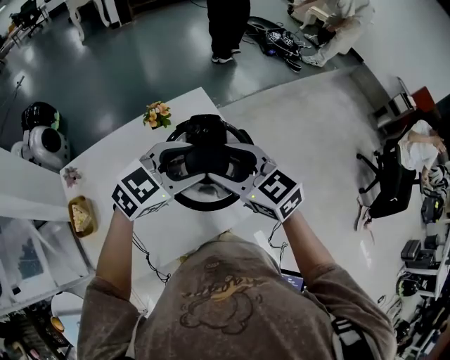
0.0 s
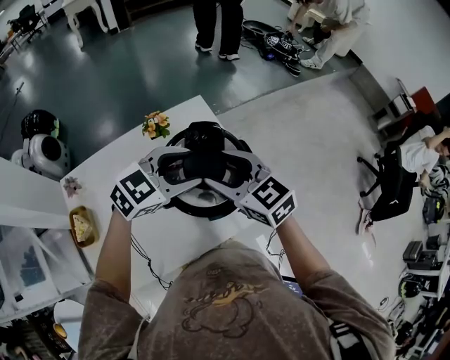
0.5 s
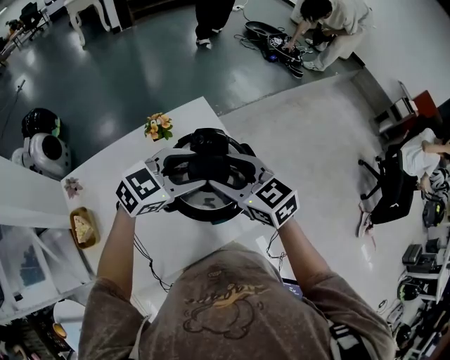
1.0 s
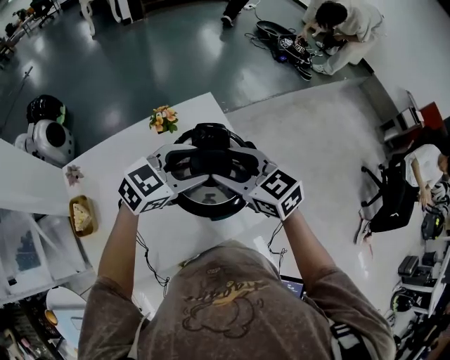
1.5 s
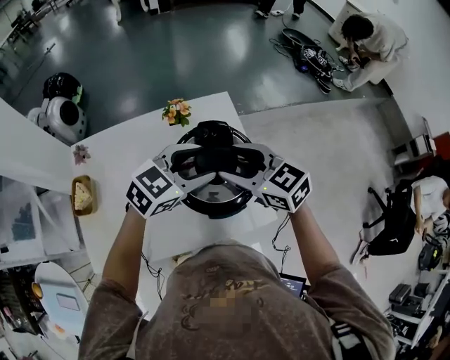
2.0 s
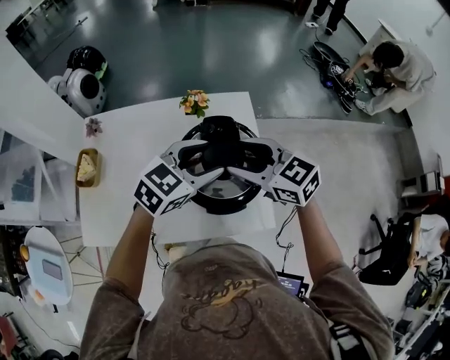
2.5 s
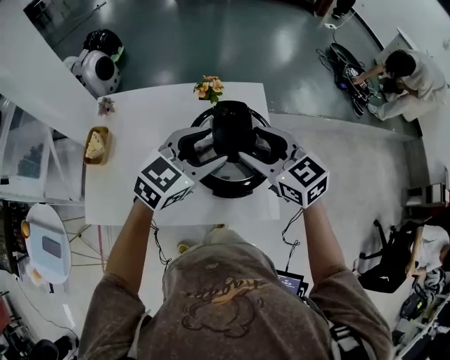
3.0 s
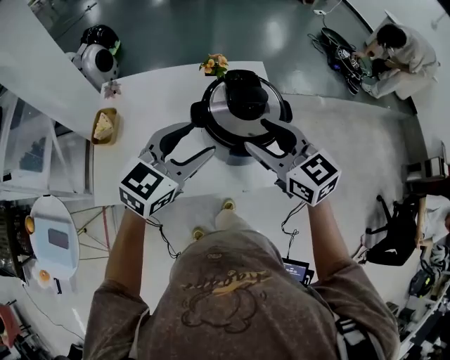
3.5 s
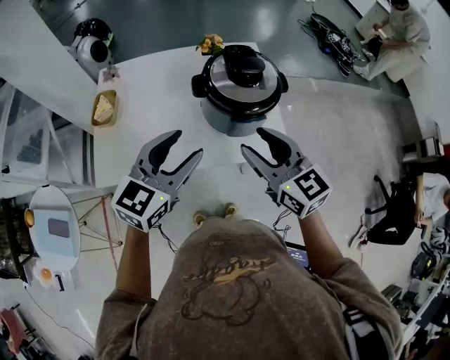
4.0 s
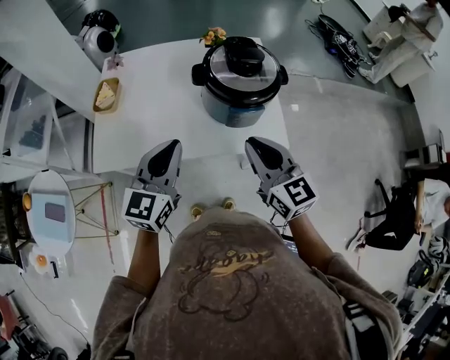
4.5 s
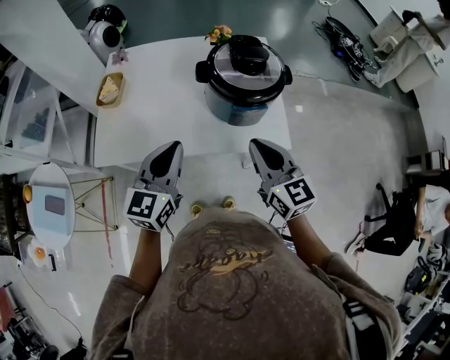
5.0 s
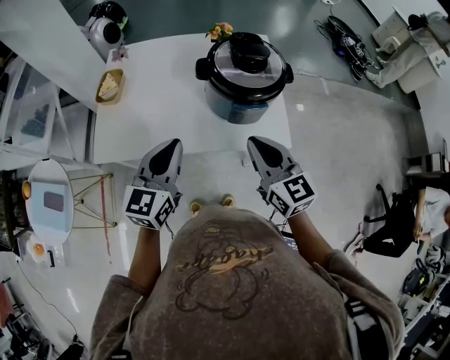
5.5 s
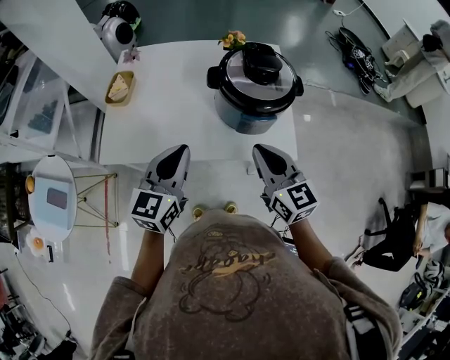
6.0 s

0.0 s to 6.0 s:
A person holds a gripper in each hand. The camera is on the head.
0.0 to 2.0 s: There are only small adjustments of the grippers.
2.0 to 4.0 s: The right gripper goes some 20 cm backward. Meanwhile the left gripper shifts some 25 cm backward and to the left, and turns by roughly 30 degrees.
4.0 to 6.0 s: The grippers both shift downward by about 5 cm. The right gripper closes up; the left gripper rotates some 20 degrees, and closes its fingers.

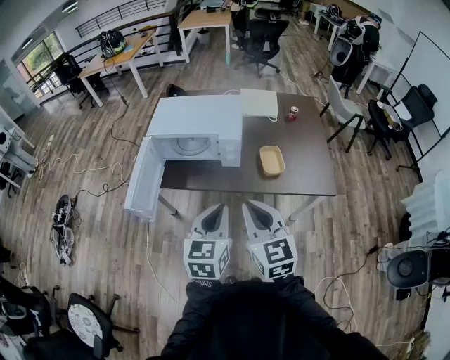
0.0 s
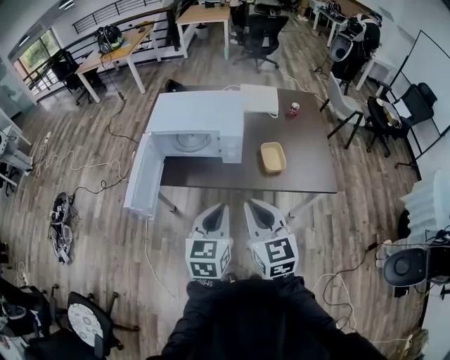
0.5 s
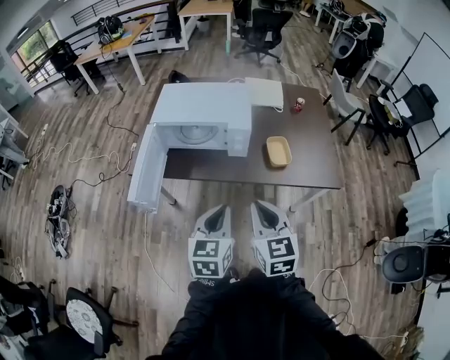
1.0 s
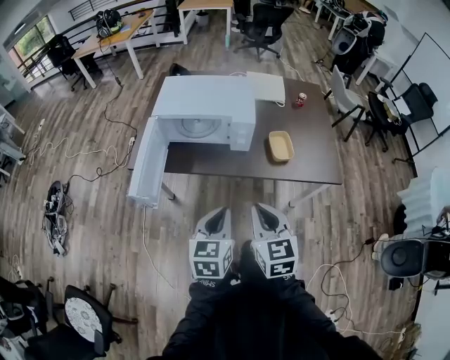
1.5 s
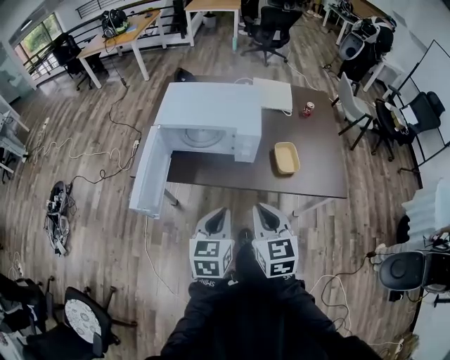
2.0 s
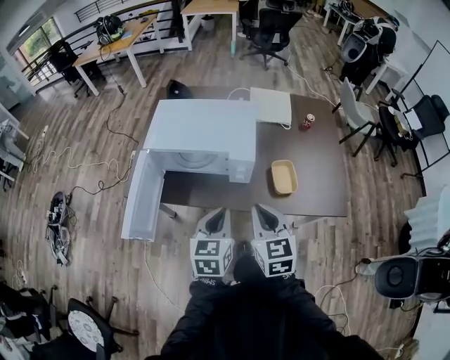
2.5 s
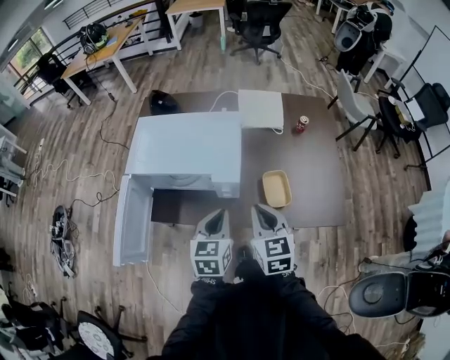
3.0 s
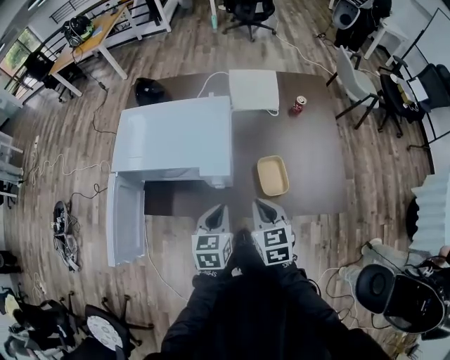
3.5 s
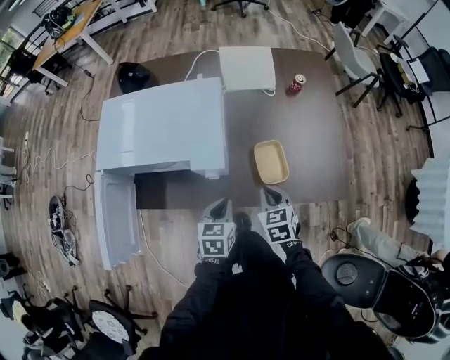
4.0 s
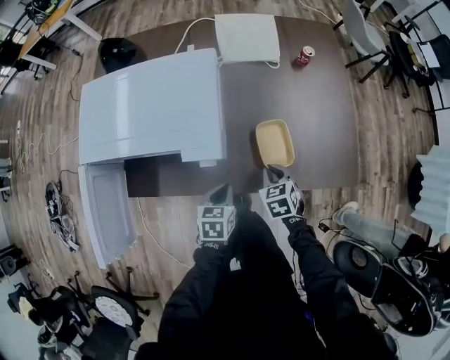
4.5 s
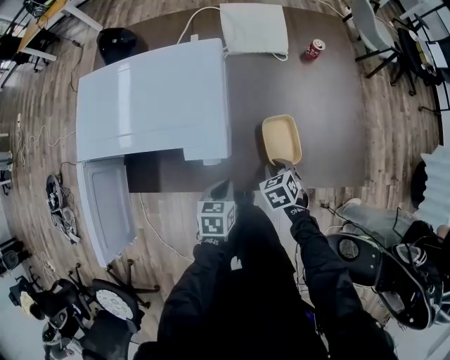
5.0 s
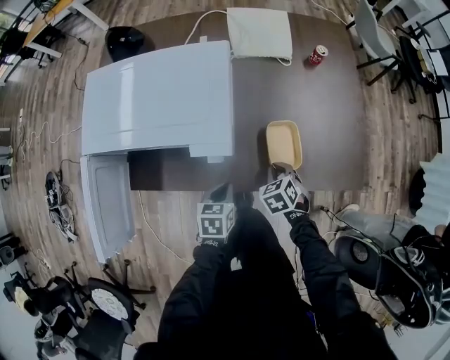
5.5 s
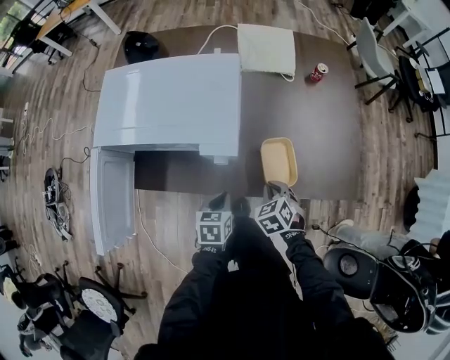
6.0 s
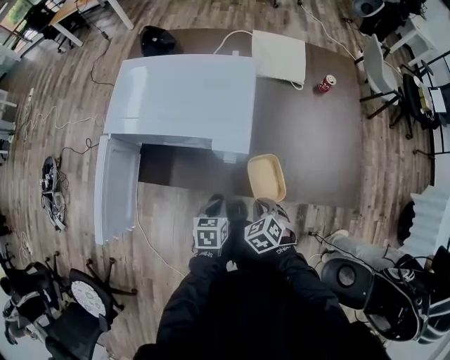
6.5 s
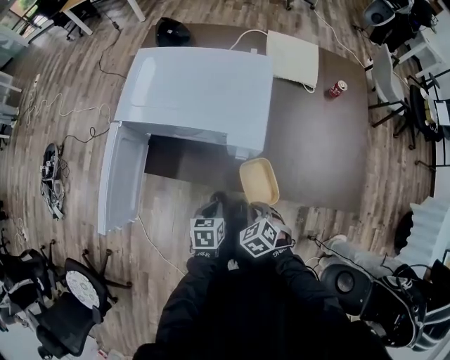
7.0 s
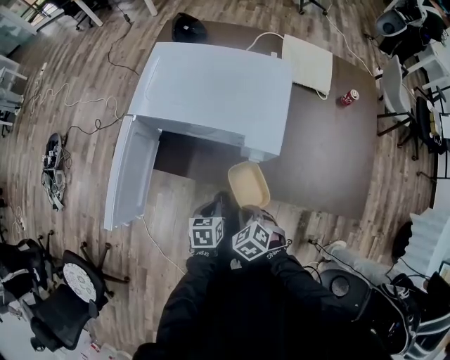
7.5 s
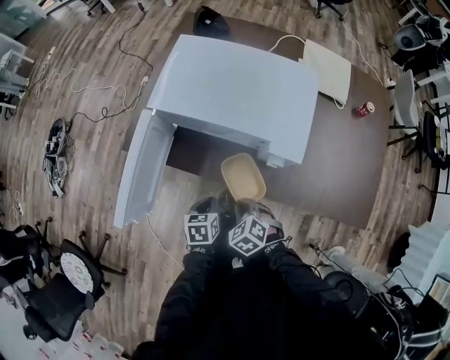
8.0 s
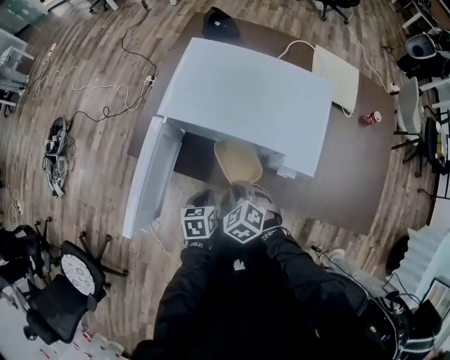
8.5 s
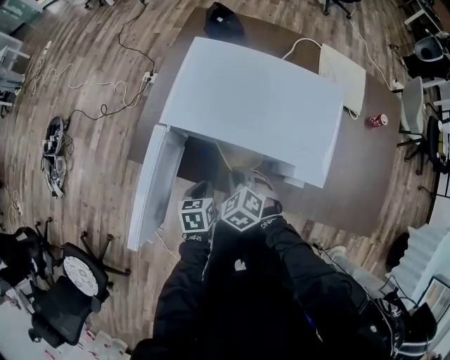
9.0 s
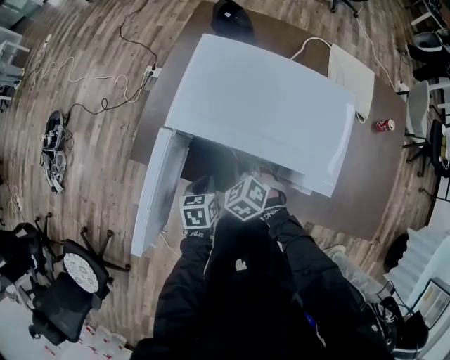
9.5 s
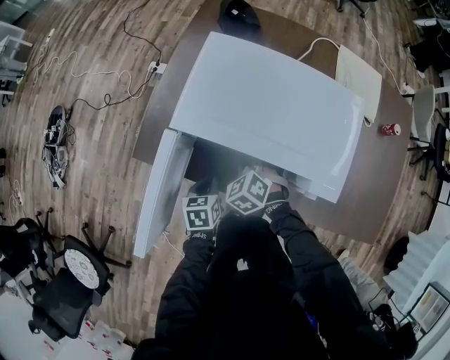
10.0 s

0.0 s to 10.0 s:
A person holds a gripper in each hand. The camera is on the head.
0.0 to 2.0 s: The right gripper heads downward and forward, covering roughly 10 cm; the left gripper heads downward and to the left, covering about 10 cm.
2.0 to 4.0 s: Both grippers move forward, downward and to the right, about 30 cm. The right gripper turns by approximately 20 degrees.
4.0 to 6.0 s: The two grippers go about 5 cm downward. The right gripper rotates about 20 degrees.
6.0 to 8.0 s: The left gripper ends up approximately 20 cm from where it was. Meanwhile the right gripper moves about 25 cm, and swivels roughly 30 degrees.
8.0 to 10.0 s: The left gripper heads forward and to the left, covering about 15 cm. The right gripper shifts about 25 cm forward.

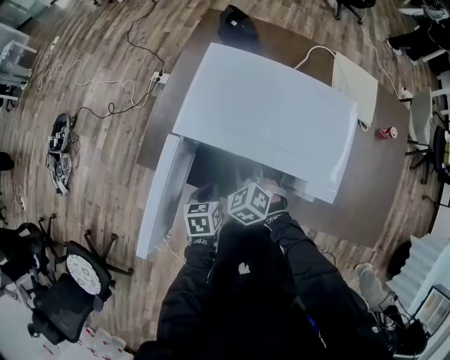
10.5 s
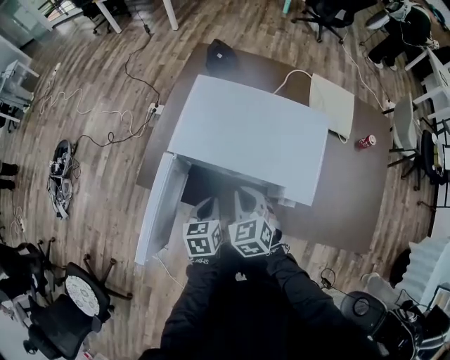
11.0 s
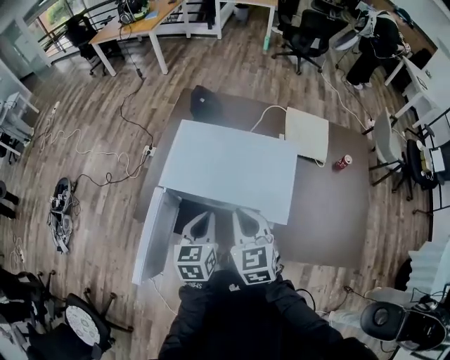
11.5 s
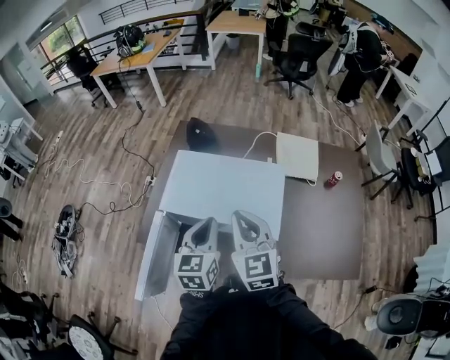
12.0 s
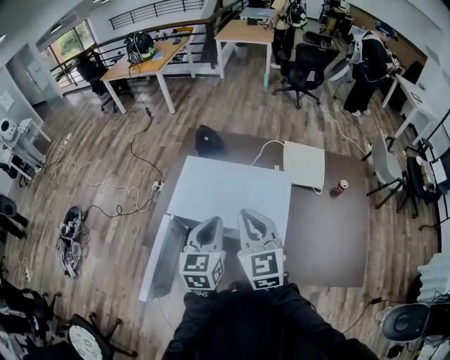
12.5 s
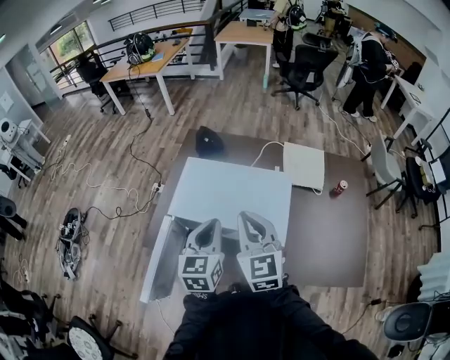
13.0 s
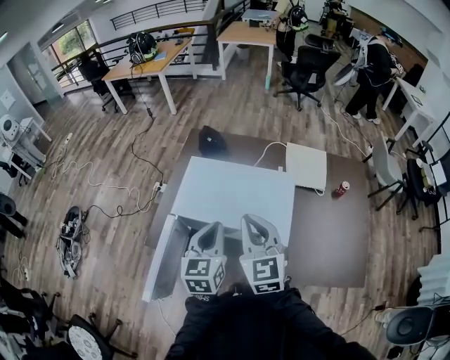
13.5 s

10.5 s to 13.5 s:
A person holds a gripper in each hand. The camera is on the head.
10.5 to 12.0 s: Both grippers move upward, about 30 cm. The right gripper points its fingers roughly 40 degrees further upward. The left gripper tilts its fingers roughly 30 degrees upward.
12.0 to 13.5 s: The grippers make only small movements.

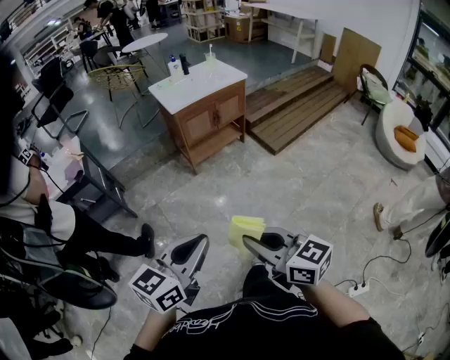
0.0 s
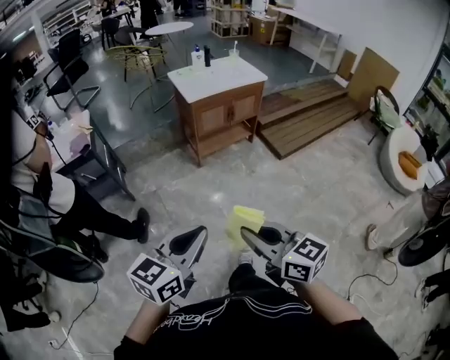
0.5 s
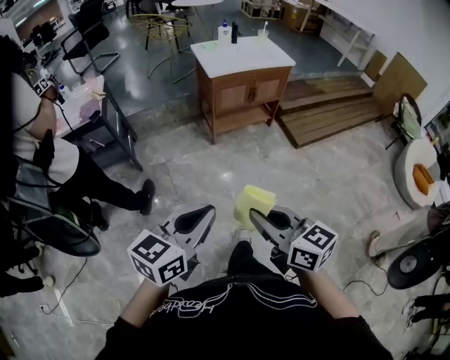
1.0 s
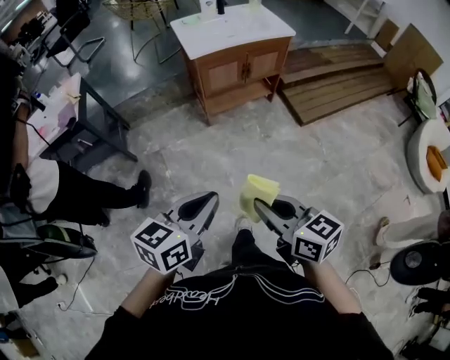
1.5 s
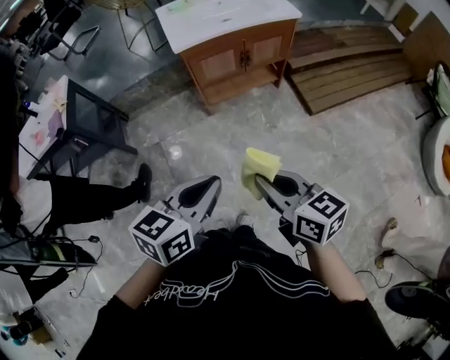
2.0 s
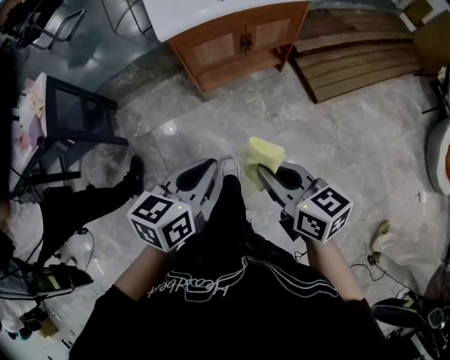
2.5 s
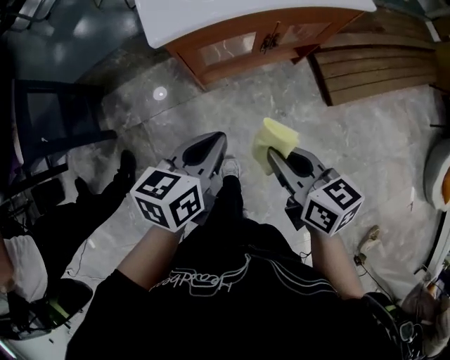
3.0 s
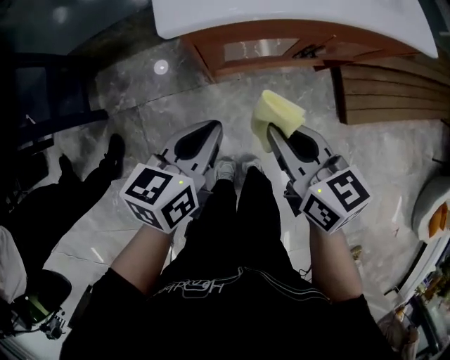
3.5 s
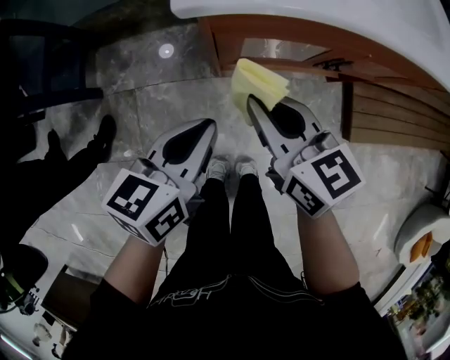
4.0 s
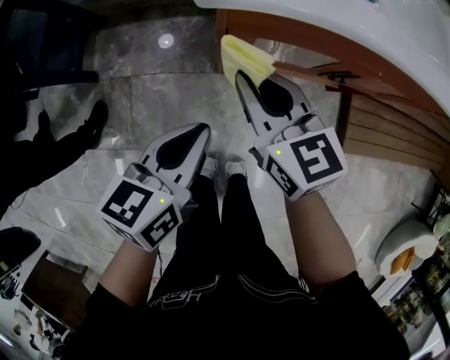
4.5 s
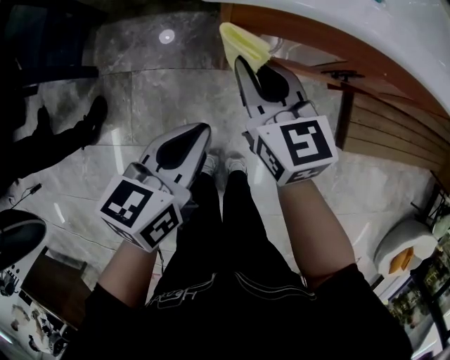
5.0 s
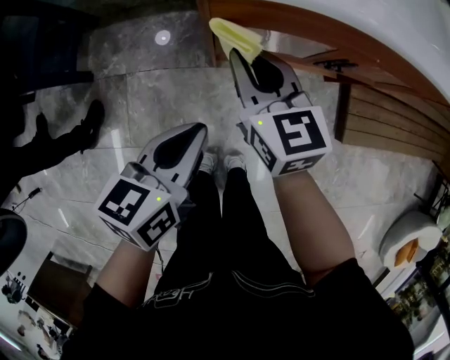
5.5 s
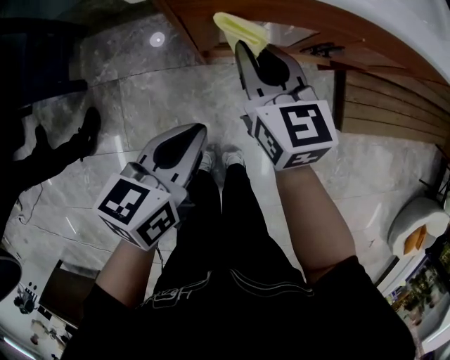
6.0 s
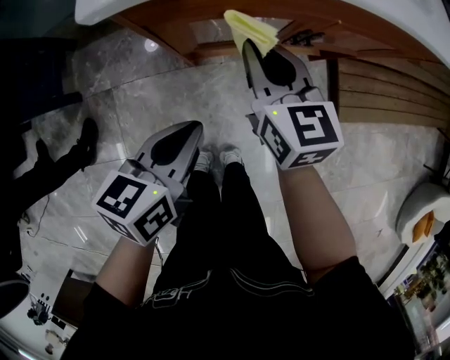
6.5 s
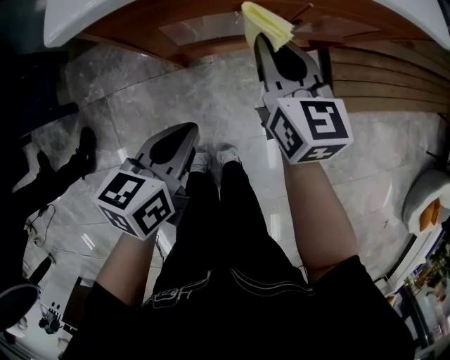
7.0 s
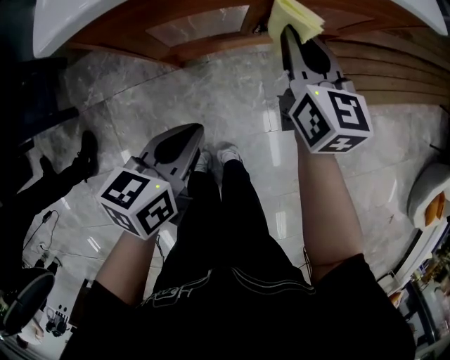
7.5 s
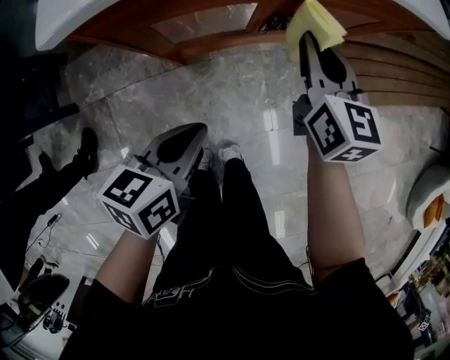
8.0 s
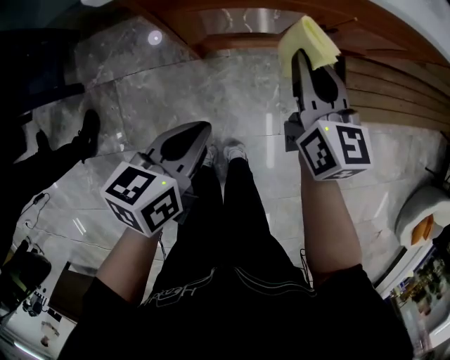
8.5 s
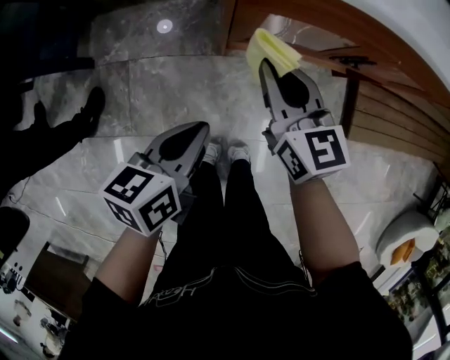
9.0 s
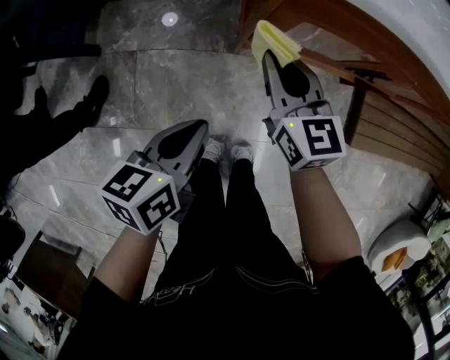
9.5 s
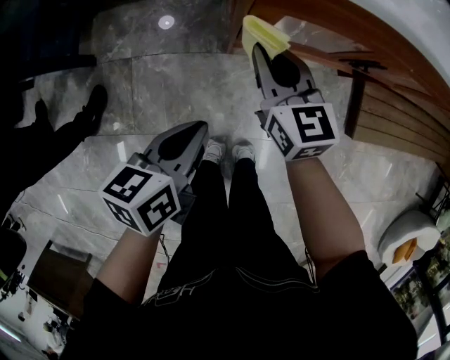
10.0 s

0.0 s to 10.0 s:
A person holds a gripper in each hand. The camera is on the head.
0.0 to 2.0 s: Both grippers travel together forward and to the right, about 30 cm. The left gripper changes its angle by some 20 degrees.
2.0 to 4.0 s: Both grippers are carried forward, some 40 cm. The two grippers go approximately 25 cm downward. The left gripper turns by about 30 degrees.
4.0 to 6.0 s: The right gripper heads forward, covering about 5 cm.
6.0 to 8.0 s: The right gripper travels to the right by some 20 cm, and swivels some 20 degrees; the left gripper moves to the right, roughly 10 cm.
8.0 to 10.0 s: The right gripper shifts some 25 cm to the left, and rotates some 30 degrees. Meanwhile the left gripper heads to the left, covering some 15 cm.
